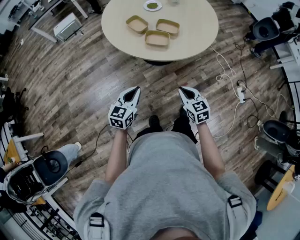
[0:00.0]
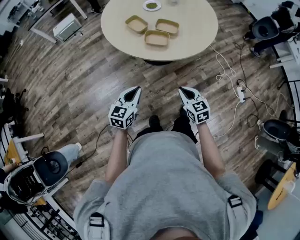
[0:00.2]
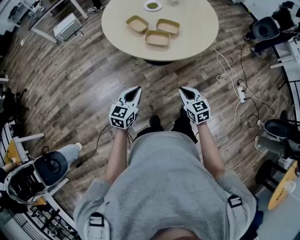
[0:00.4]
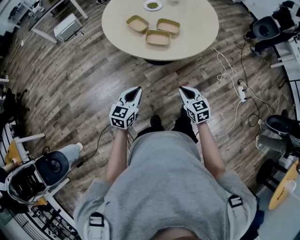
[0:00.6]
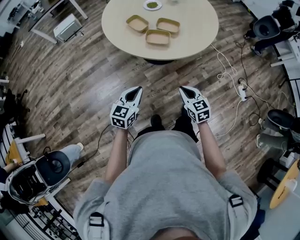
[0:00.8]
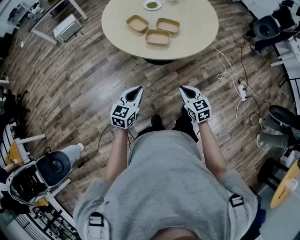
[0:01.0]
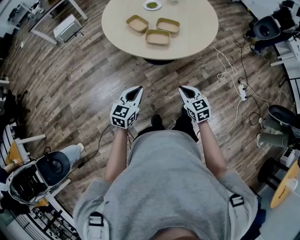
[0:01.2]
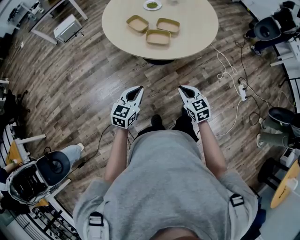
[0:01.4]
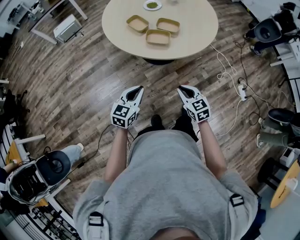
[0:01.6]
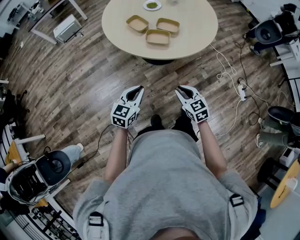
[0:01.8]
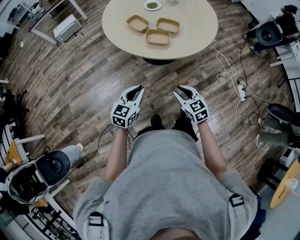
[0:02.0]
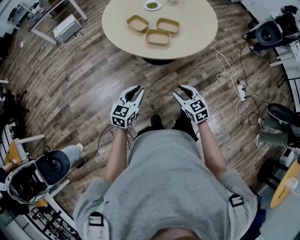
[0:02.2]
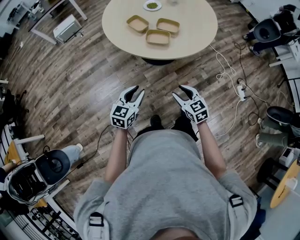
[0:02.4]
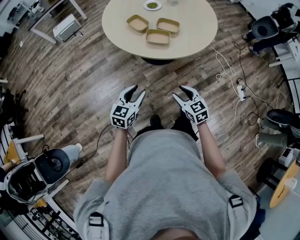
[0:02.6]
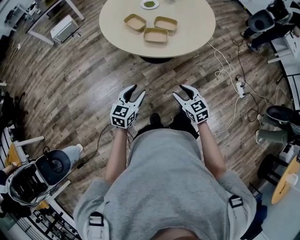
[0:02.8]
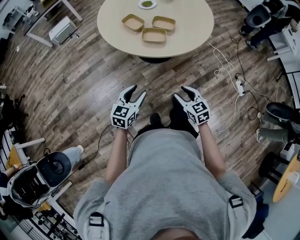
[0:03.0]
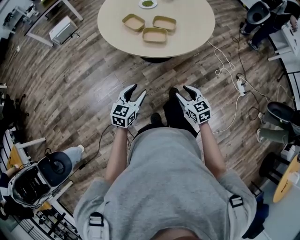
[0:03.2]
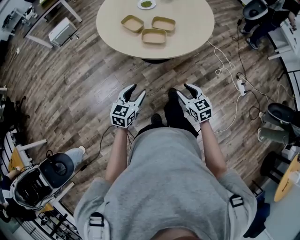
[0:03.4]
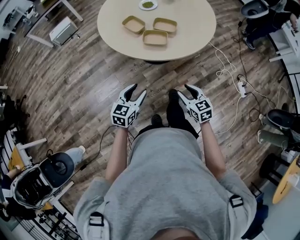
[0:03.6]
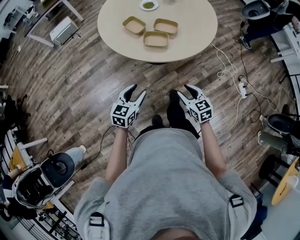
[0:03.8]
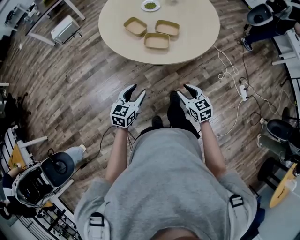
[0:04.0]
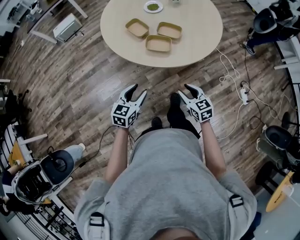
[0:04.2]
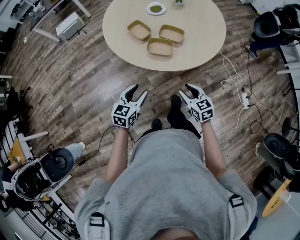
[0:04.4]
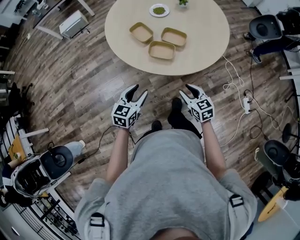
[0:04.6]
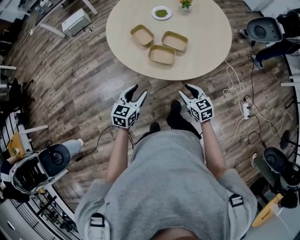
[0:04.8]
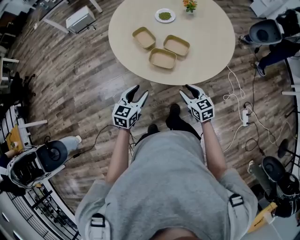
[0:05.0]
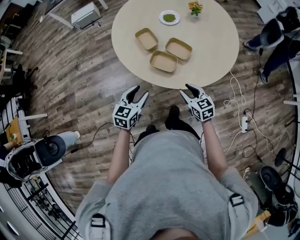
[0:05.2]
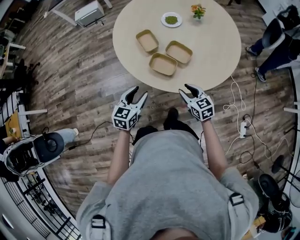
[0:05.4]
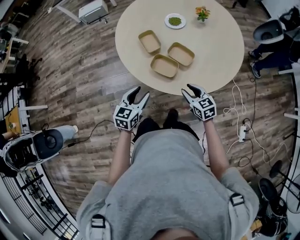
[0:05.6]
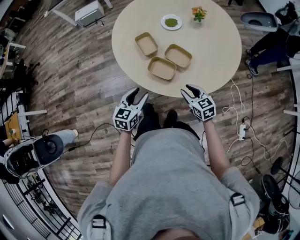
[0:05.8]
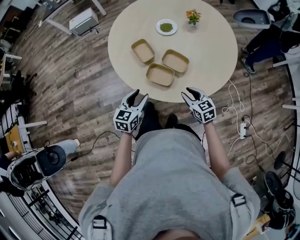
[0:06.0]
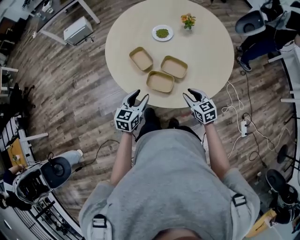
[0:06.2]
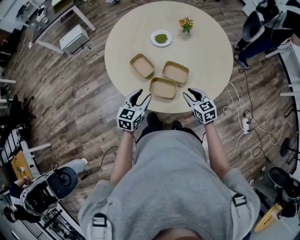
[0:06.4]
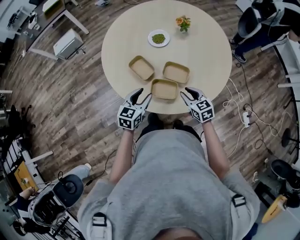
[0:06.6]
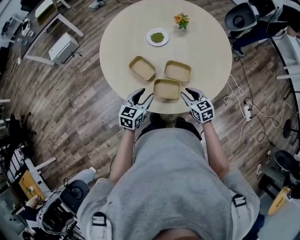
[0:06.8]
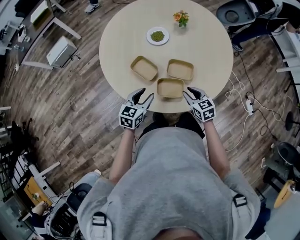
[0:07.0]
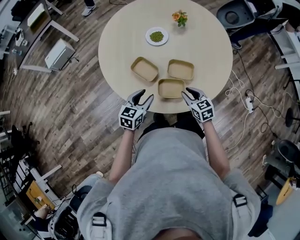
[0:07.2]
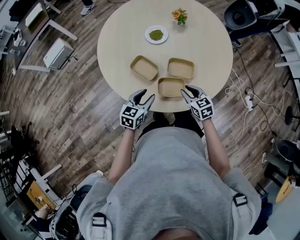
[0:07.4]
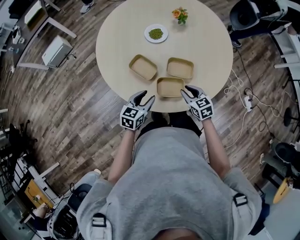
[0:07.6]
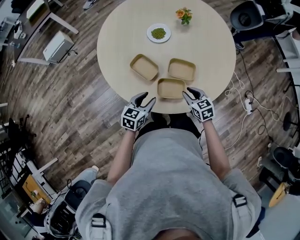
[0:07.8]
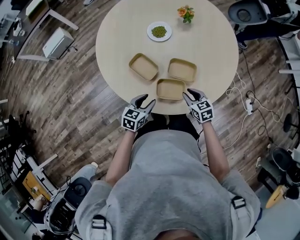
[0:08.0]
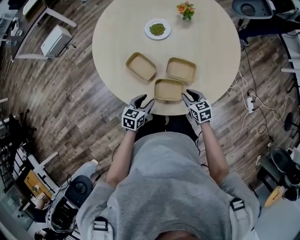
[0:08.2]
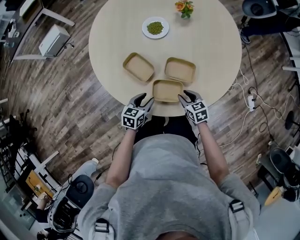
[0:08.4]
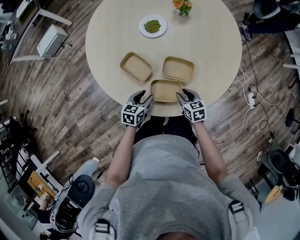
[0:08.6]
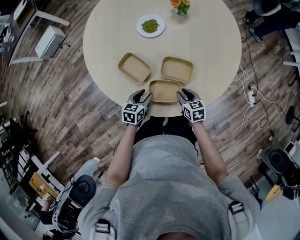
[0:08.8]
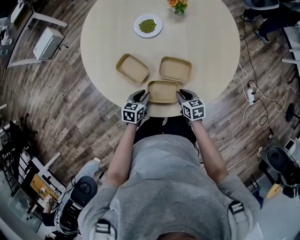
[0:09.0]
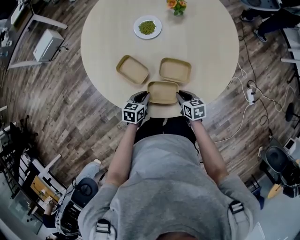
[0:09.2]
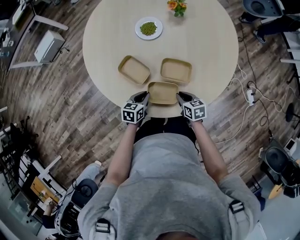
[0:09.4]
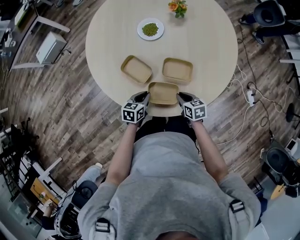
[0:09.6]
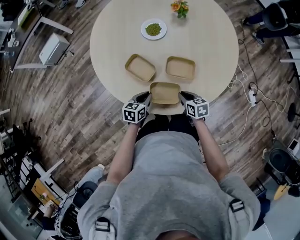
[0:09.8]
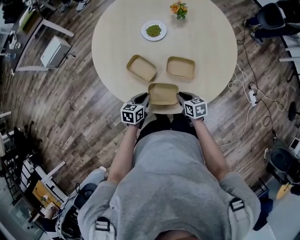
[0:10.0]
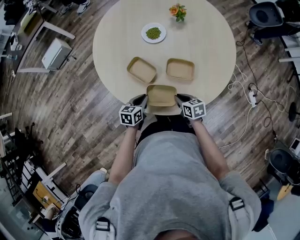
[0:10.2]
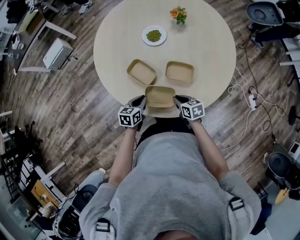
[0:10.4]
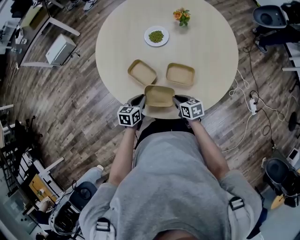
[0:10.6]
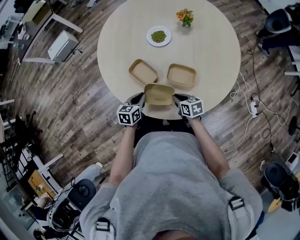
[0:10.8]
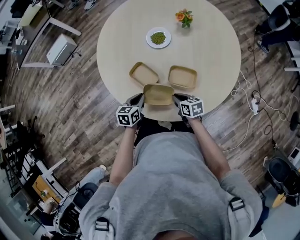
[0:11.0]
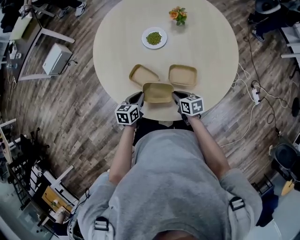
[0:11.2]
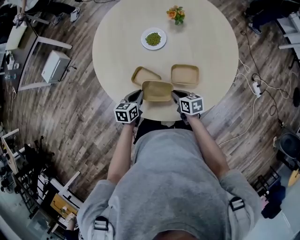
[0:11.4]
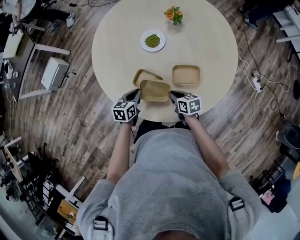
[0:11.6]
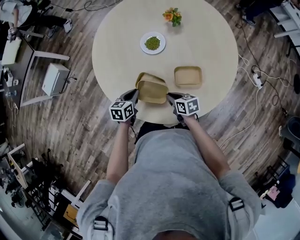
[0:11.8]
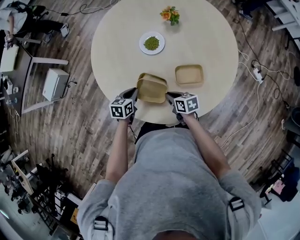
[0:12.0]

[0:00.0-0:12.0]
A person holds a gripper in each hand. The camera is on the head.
0.0 to 1.6 s: There are only small adjustments of the grippers.
1.6 to 3.0 s: The left gripper opens its fingers, while the right gripper opens.
3.0 to 4.4 s: The two grippers go some 15 cm forward.
4.4 to 6.0 s: Both grippers move forward, roughly 20 cm.
6.0 to 7.6 s: The left gripper shifts by approximately 15 cm, and swivels some 30 degrees. The right gripper moves approximately 15 cm, and swivels about 20 degrees.
7.6 to 9.0 s: Both grippers move downward, roughly 15 cm. The right gripper swivels some 20 degrees.
9.0 to 10.4 s: The right gripper heads to the left, covering about 5 cm. Meanwhile the left gripper moves upward and to the left, about 10 cm.
10.4 to 12.0 s: The right gripper heads to the left and forward, covering roughly 15 cm, and rotates about 20 degrees. The left gripper heads forward and to the left, covering approximately 20 cm.

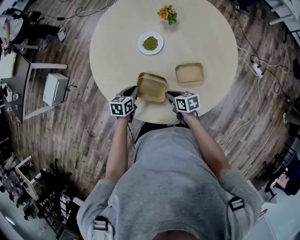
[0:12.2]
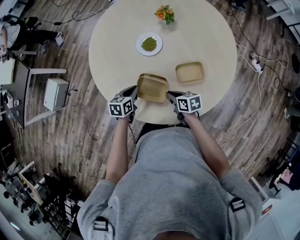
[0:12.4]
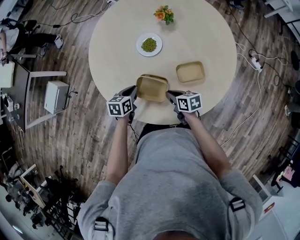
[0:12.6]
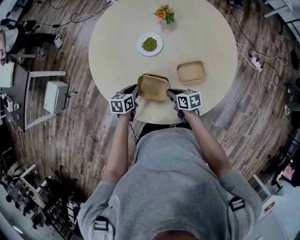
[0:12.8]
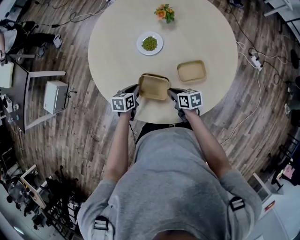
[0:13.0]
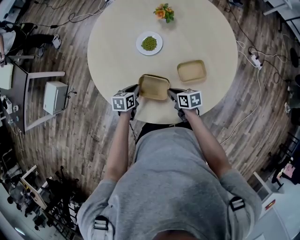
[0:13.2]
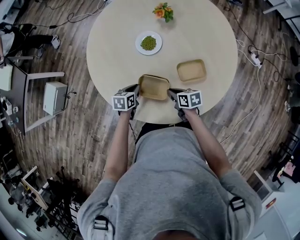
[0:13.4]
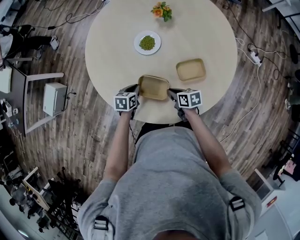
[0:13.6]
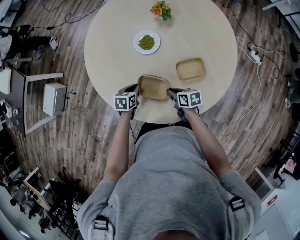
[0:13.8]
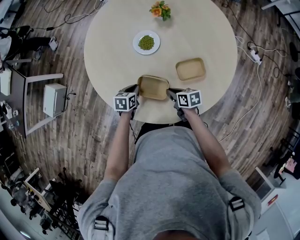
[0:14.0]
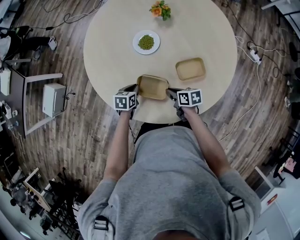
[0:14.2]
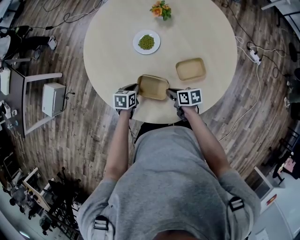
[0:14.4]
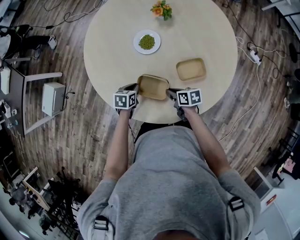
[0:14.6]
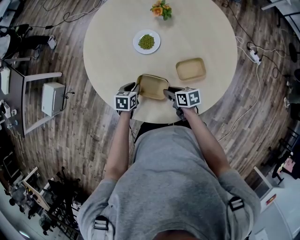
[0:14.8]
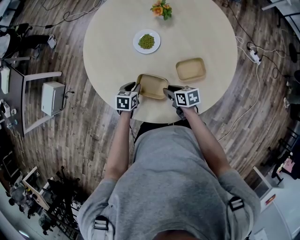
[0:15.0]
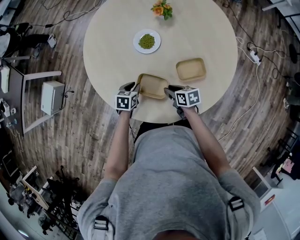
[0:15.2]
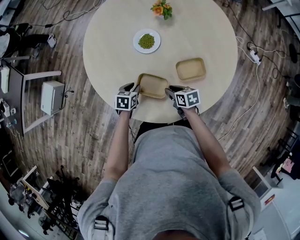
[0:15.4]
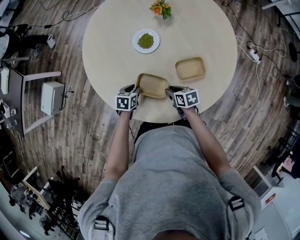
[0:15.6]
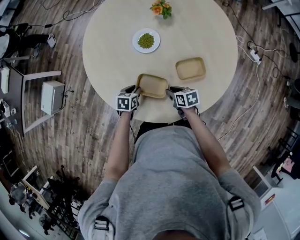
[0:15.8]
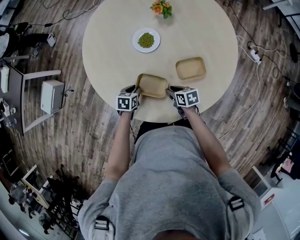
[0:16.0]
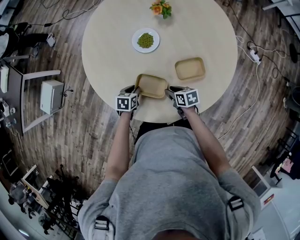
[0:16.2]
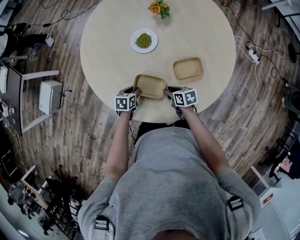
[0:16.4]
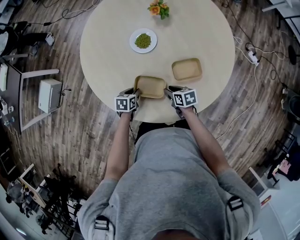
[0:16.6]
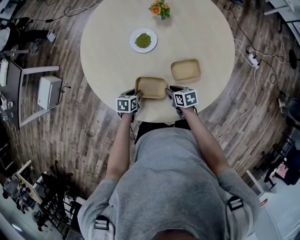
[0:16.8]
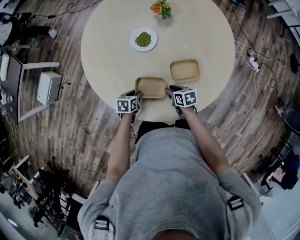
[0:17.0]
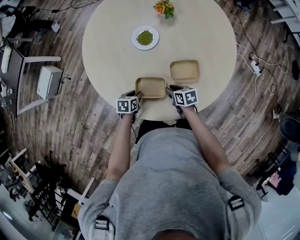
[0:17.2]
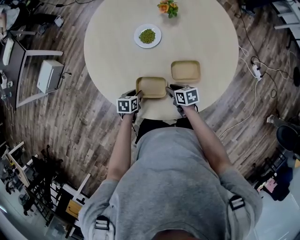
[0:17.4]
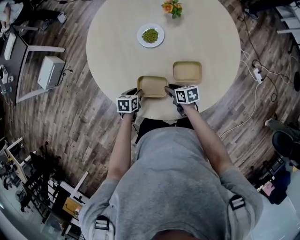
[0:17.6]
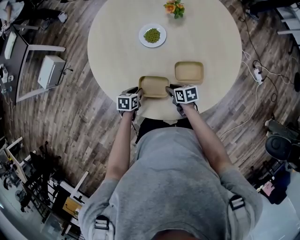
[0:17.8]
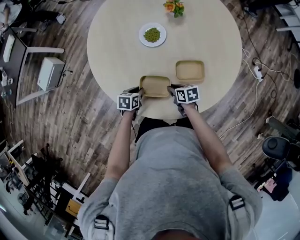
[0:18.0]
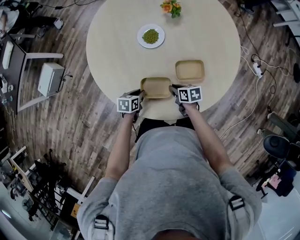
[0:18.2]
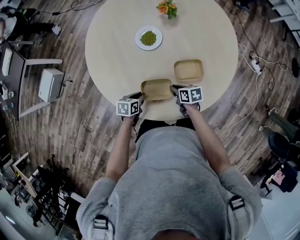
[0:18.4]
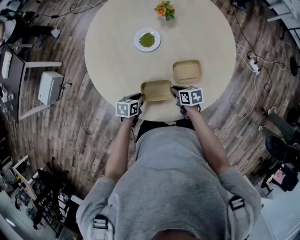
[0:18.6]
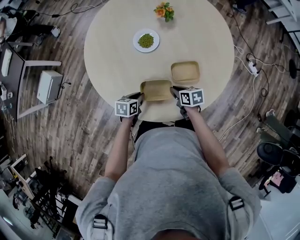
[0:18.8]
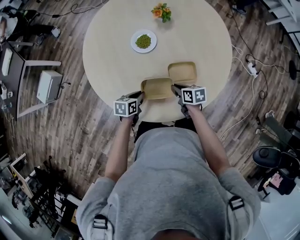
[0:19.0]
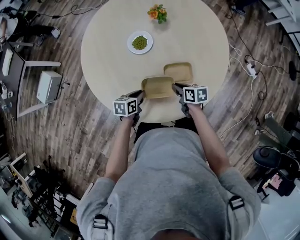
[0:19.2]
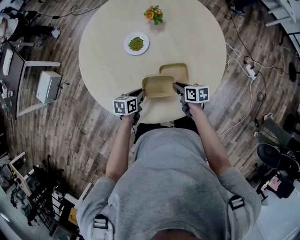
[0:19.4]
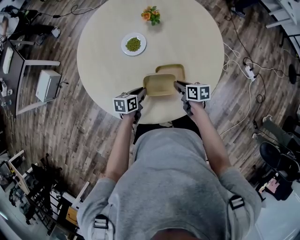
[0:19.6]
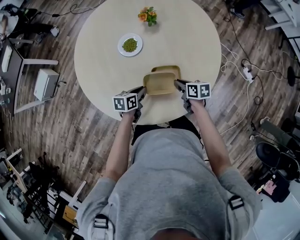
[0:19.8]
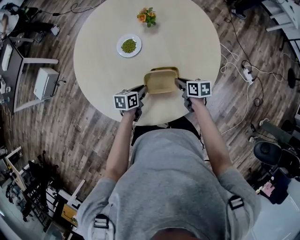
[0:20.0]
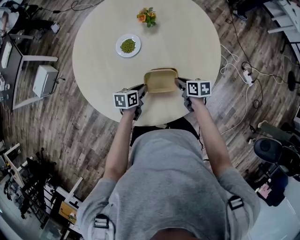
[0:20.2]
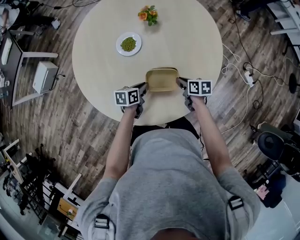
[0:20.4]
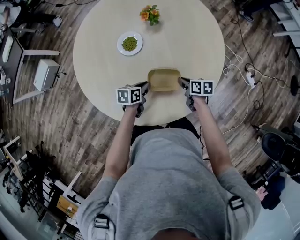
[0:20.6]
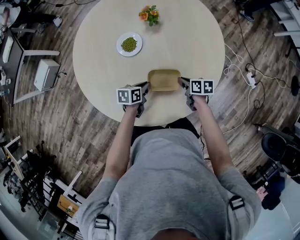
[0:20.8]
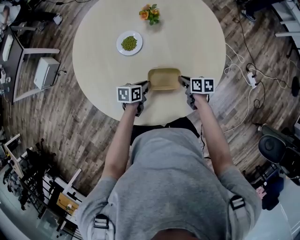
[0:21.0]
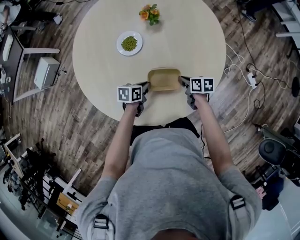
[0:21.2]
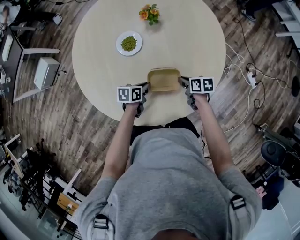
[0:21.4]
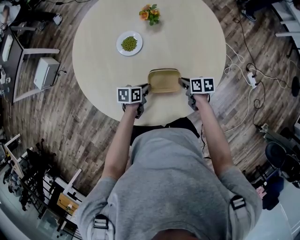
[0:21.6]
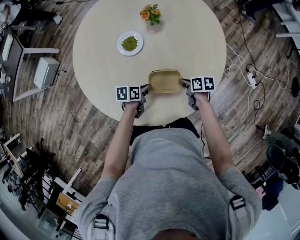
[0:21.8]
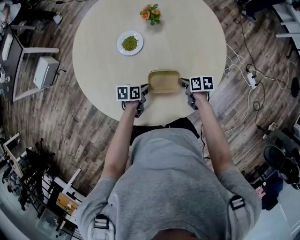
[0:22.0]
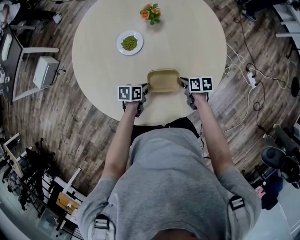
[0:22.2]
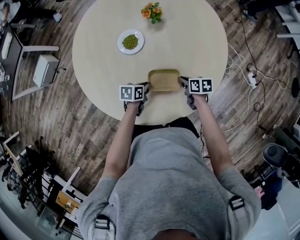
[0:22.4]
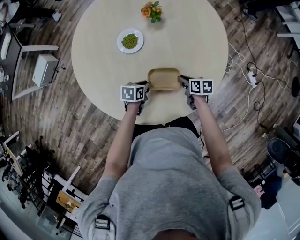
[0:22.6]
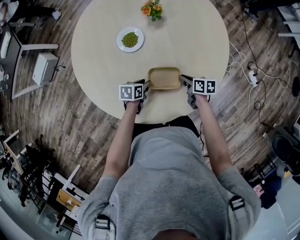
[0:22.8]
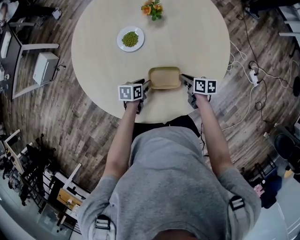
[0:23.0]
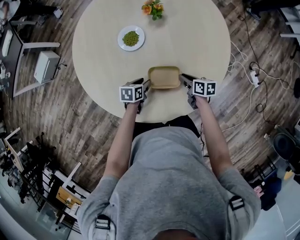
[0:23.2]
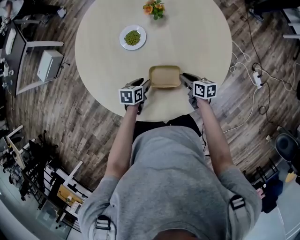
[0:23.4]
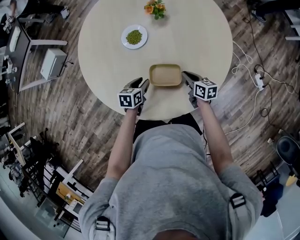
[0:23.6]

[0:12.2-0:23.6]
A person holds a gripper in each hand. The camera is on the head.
12.2 to 13.6 s: There are only small adjustments of the grippers.
13.6 to 15.0 s: The right gripper opens.
15.0 to 16.4 s: There are only small adjustments of the grippers.
16.4 to 17.8 s: The left gripper is displaced backward by about 5 cm.
17.8 to 19.4 s: The grippers both shift to the right and upward by roughly 15 cm.
19.4 to 20.8 s: Both grippers move to the right and forward, some 10 cm.
20.8 to 22.2 s: There are only small adjustments of the grippers.
22.2 to 23.6 s: The left gripper swivels approximately 20 degrees, and opens its fingers; the right gripper swivels roughly 20 degrees.

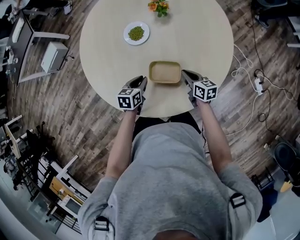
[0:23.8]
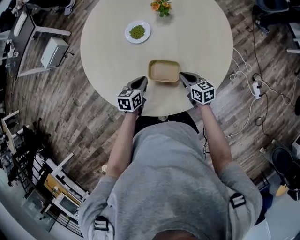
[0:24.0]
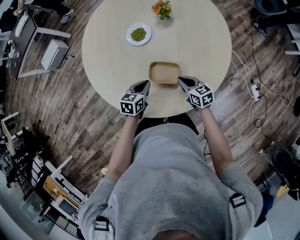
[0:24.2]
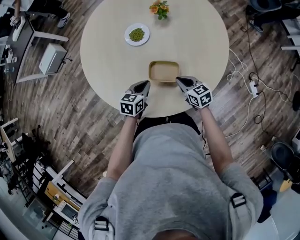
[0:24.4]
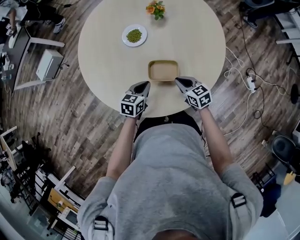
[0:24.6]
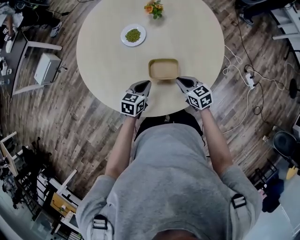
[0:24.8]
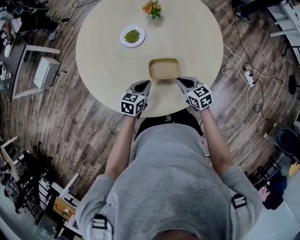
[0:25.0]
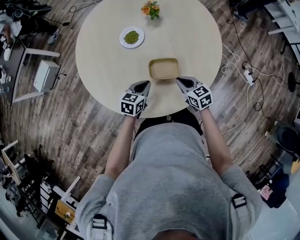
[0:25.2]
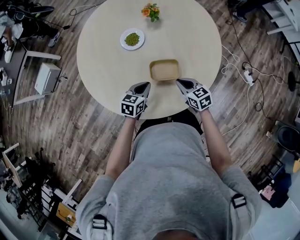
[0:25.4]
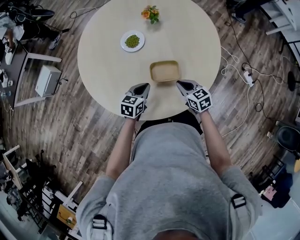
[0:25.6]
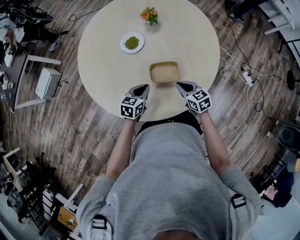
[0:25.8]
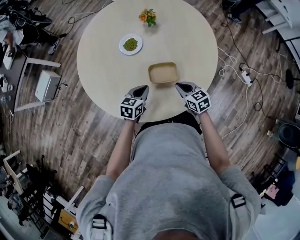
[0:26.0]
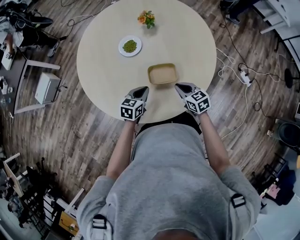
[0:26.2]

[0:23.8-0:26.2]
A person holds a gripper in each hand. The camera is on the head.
23.8 to 25.0 s: The left gripper shifts by roughly 5 cm; the right gripper goes approximately 10 cm backward and to the left, and changes its angle by about 20 degrees.
25.0 to 26.2 s: The grippers make only small movements.
